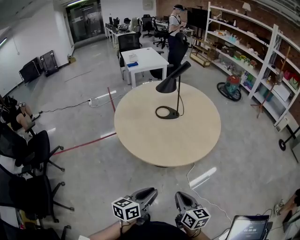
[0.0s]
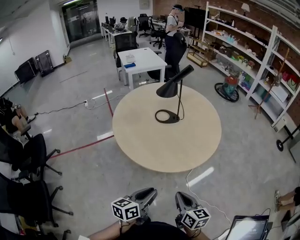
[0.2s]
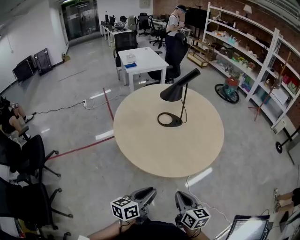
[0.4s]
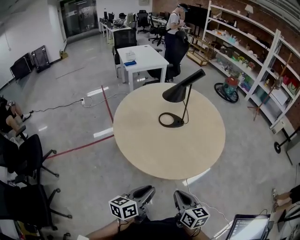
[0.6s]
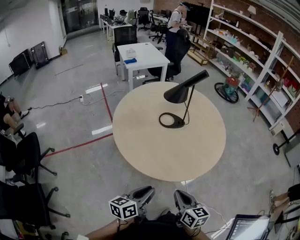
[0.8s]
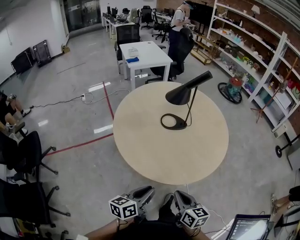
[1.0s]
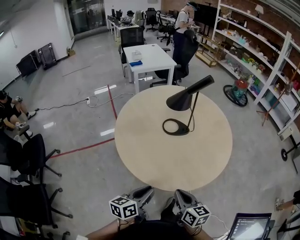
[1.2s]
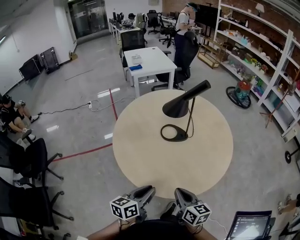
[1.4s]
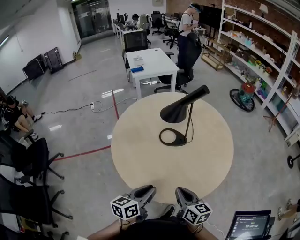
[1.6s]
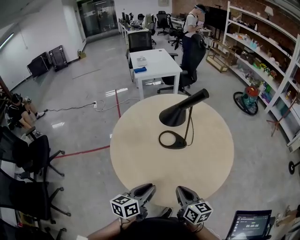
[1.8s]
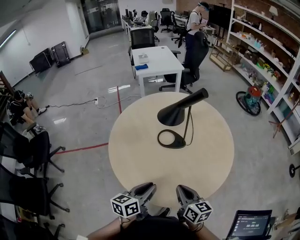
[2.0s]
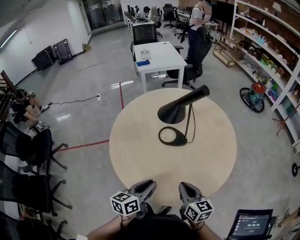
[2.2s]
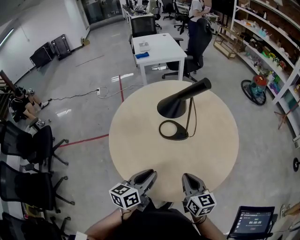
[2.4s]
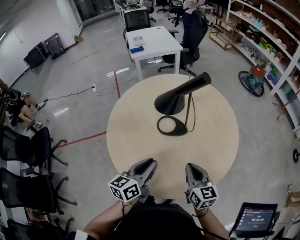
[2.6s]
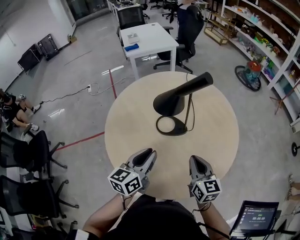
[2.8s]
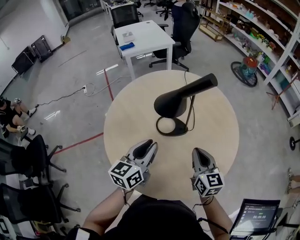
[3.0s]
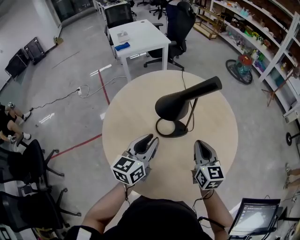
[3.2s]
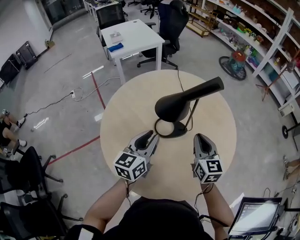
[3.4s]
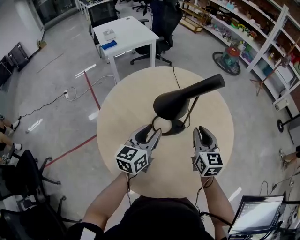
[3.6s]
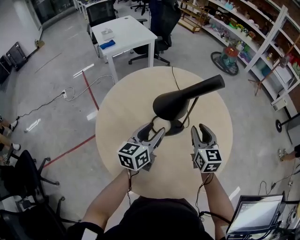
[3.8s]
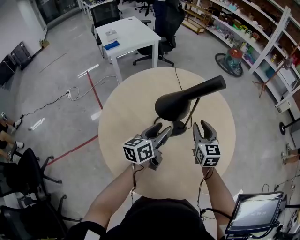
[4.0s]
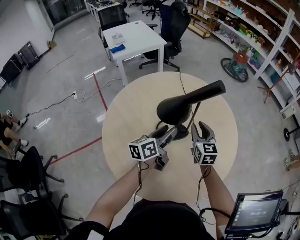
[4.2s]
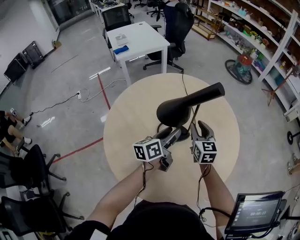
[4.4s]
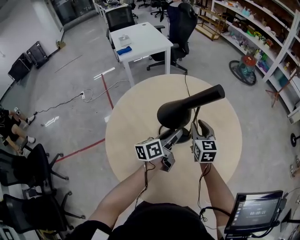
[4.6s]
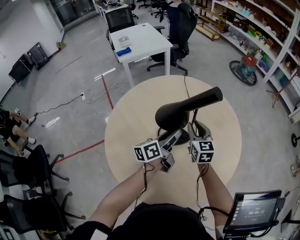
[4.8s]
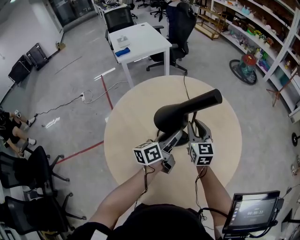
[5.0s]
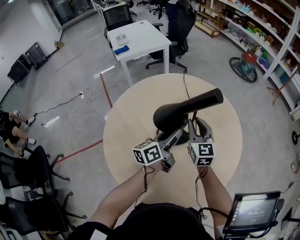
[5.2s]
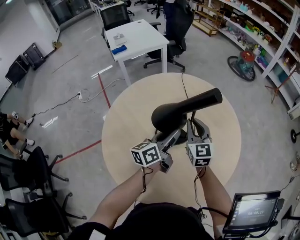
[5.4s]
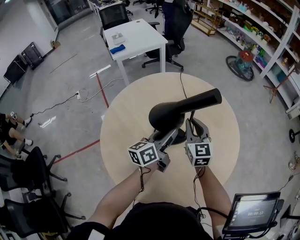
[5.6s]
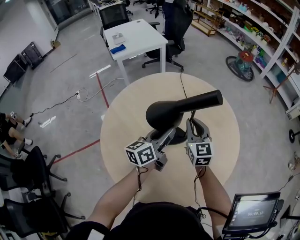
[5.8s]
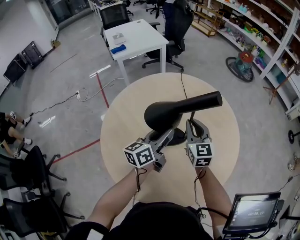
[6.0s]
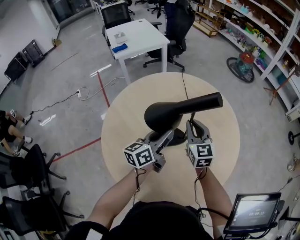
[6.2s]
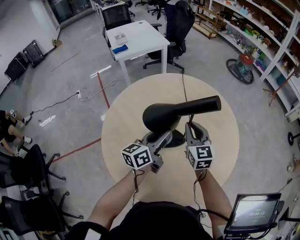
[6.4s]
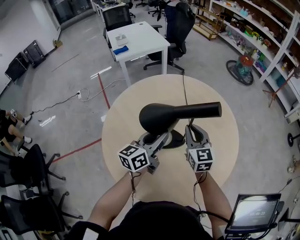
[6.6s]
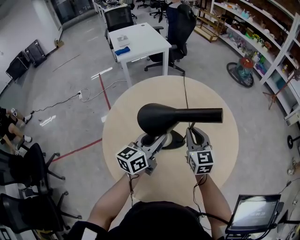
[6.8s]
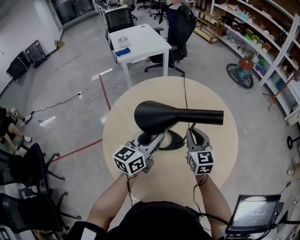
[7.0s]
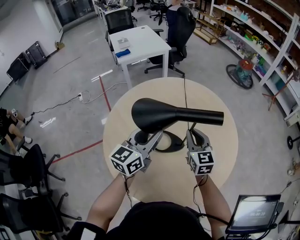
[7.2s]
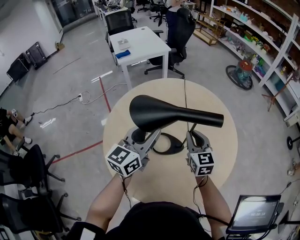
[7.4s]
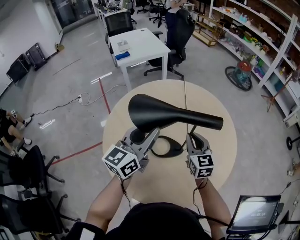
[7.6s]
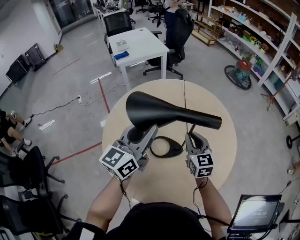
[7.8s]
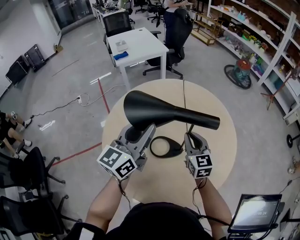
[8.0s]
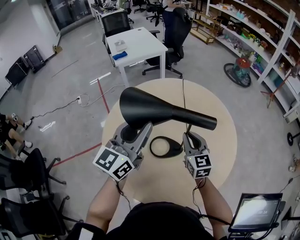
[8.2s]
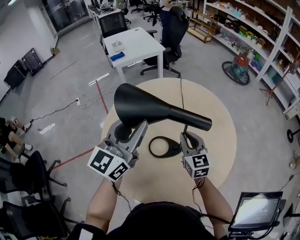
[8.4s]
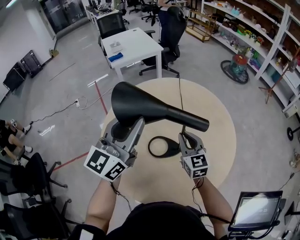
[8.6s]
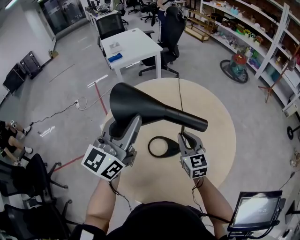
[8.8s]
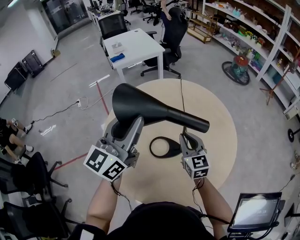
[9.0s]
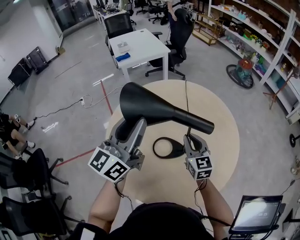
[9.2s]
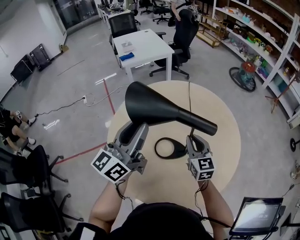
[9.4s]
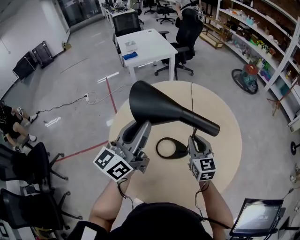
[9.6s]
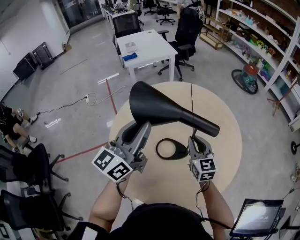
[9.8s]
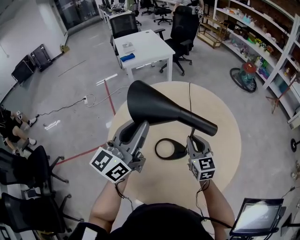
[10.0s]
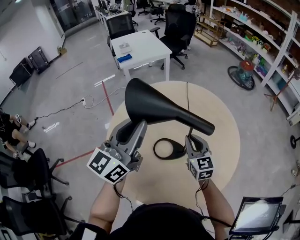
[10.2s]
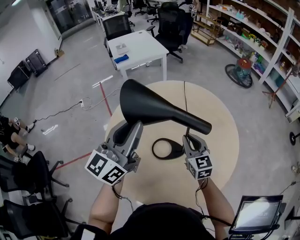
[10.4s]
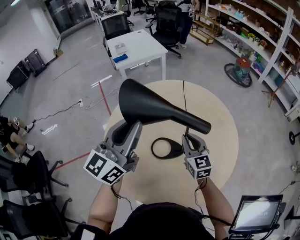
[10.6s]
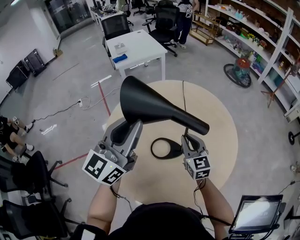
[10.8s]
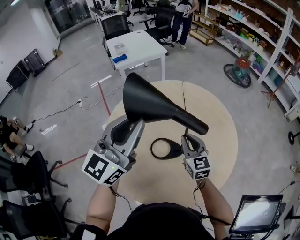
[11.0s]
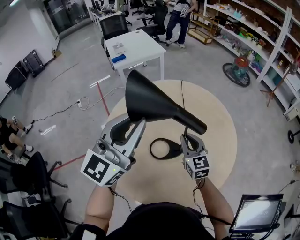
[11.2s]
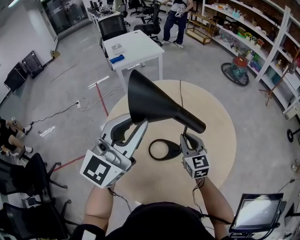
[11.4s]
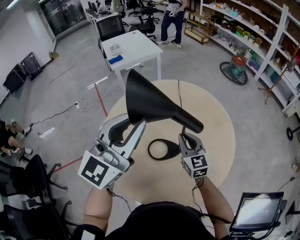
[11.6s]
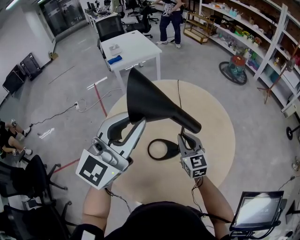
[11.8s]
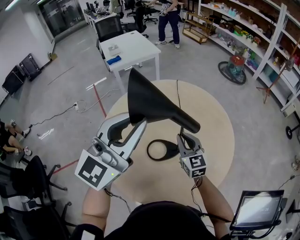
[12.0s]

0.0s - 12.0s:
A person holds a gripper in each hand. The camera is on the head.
0.0s - 1.6s: Both grippers move forward, about 25 cm.
1.6s - 3.0s: The grippers both shift forward by about 20 cm. The right gripper rotates roughly 20 degrees.
3.0s - 4.4s: The left gripper heads forward and downward, covering approximately 15 cm, turns by roughly 30 degrees, and opens its fingers; the right gripper travels forward by about 15 cm, and opens its fingers.
4.4s - 6.0s: The grippers make only small movements.
6.0s - 7.6s: The right gripper shifts about 5 cm backward. The left gripper heads upward, backward and to the left, covering about 15 cm, and swivels roughly 30 degrees.
7.6s - 9.0s: The left gripper heads upward, covering approximately 10 cm.
9.0s - 10.4s: There are only small adjustments of the grippers.
10.4s - 12.0s: The left gripper ends up approximately 5 cm from where it was, and swivels roughly 30 degrees.

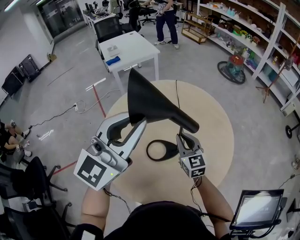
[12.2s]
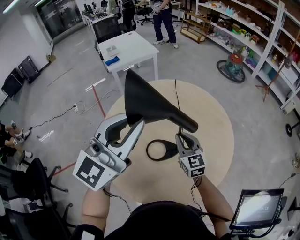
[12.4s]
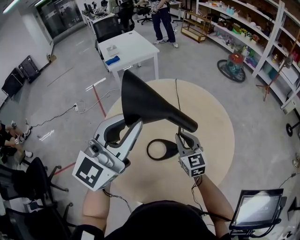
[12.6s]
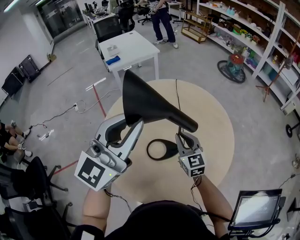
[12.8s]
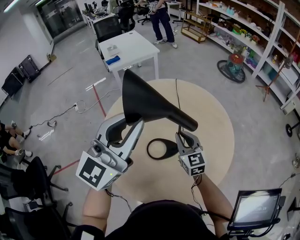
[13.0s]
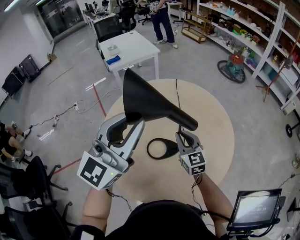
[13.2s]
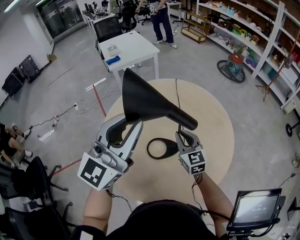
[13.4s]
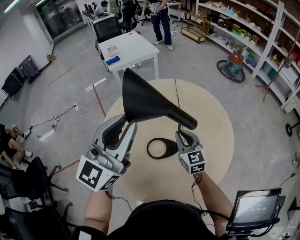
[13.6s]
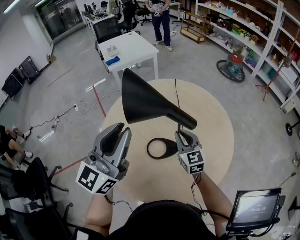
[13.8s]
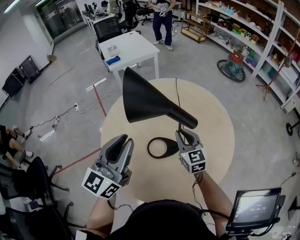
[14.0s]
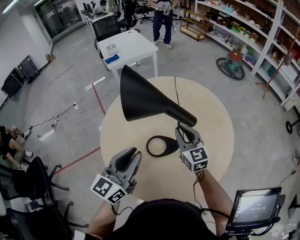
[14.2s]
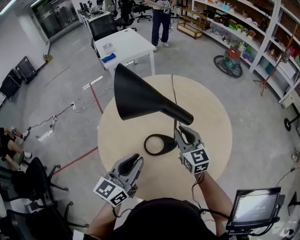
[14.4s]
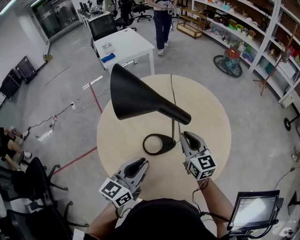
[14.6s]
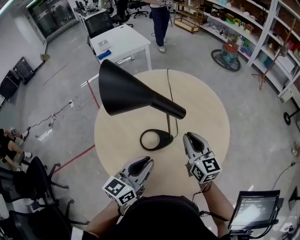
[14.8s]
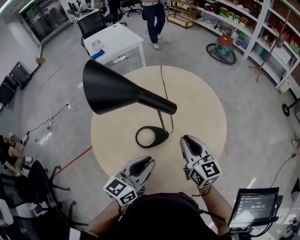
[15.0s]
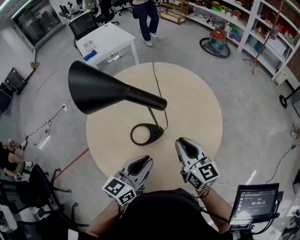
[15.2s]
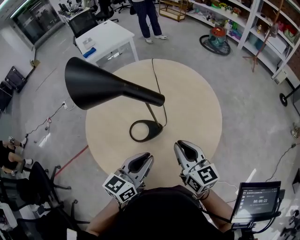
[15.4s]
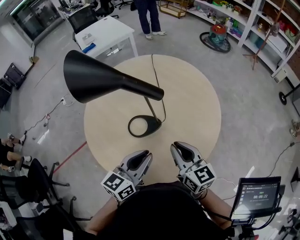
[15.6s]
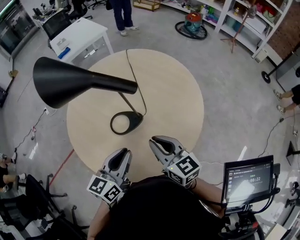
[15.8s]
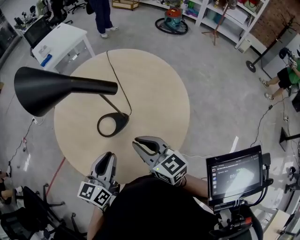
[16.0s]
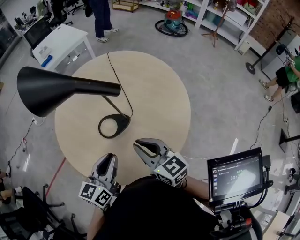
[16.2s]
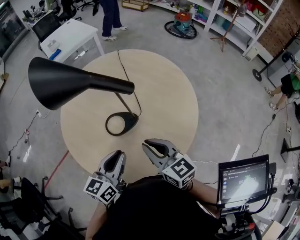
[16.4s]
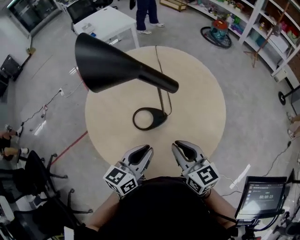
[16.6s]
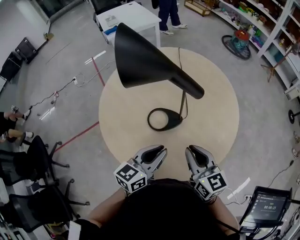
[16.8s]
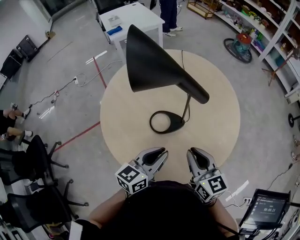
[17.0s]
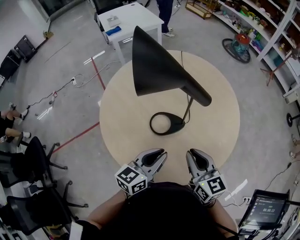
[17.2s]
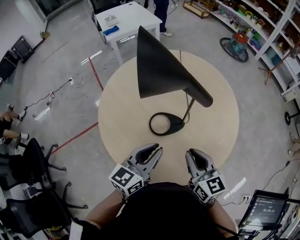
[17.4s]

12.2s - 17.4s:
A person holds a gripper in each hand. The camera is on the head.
12.2s - 14.0s: The left gripper moves downward, about 10 cm, and swivels approximately 20 degrees.
14.0s - 15.6s: The left gripper is displaced downward, to the right and backward by roughly 20 cm, and rotates about 30 degrees. The right gripper is displaced backward and to the right by some 20 cm.
15.6s - 17.4s: The left gripper is displaced to the left by roughly 5 cm.

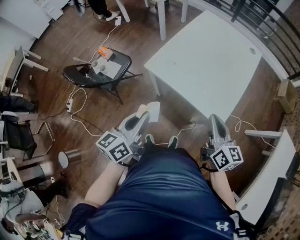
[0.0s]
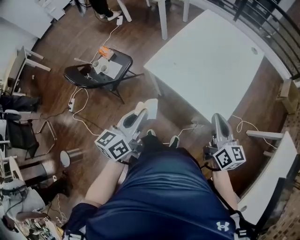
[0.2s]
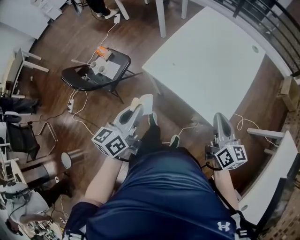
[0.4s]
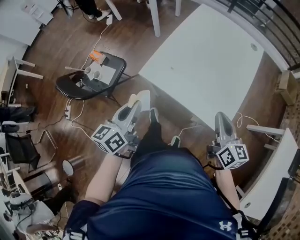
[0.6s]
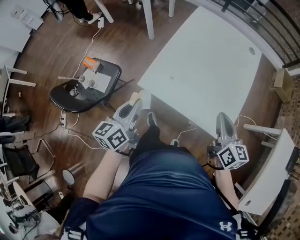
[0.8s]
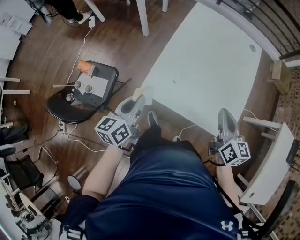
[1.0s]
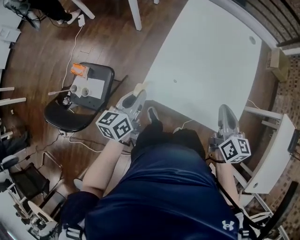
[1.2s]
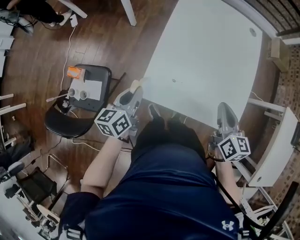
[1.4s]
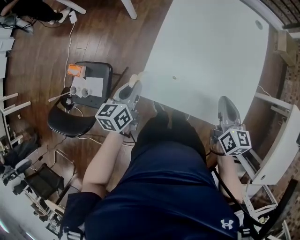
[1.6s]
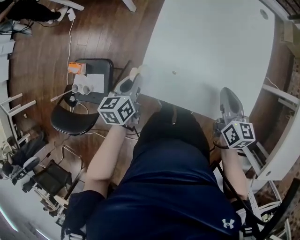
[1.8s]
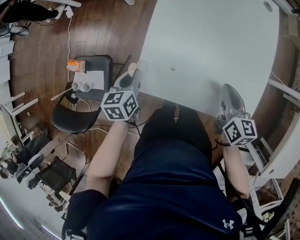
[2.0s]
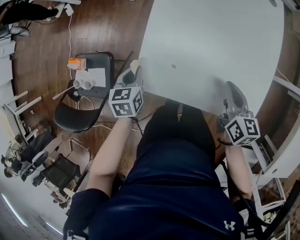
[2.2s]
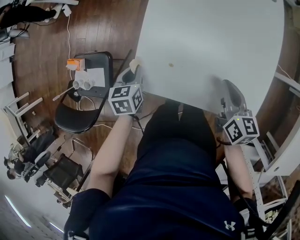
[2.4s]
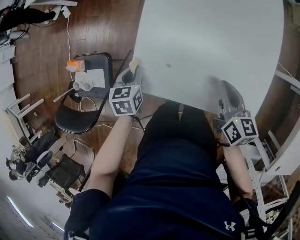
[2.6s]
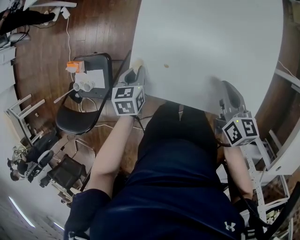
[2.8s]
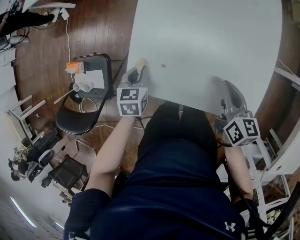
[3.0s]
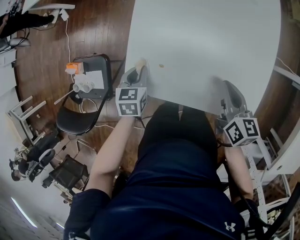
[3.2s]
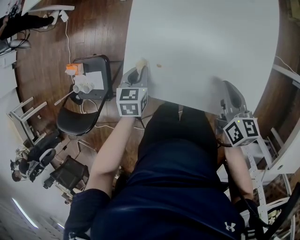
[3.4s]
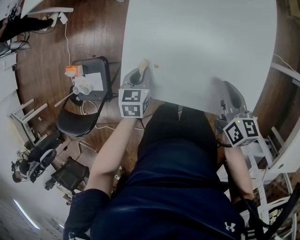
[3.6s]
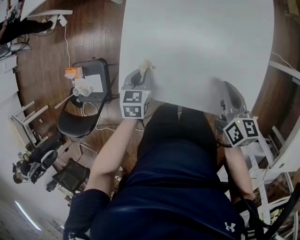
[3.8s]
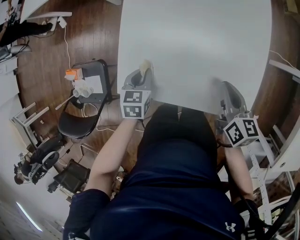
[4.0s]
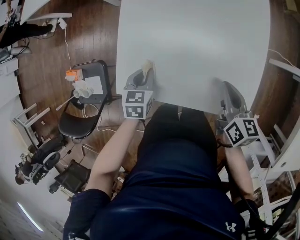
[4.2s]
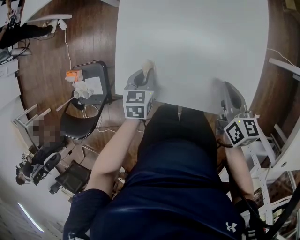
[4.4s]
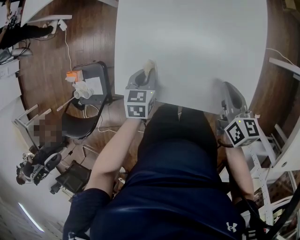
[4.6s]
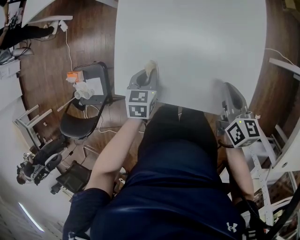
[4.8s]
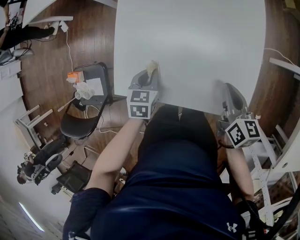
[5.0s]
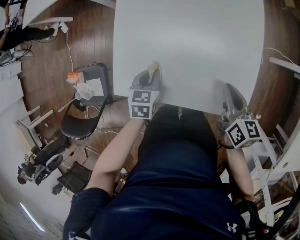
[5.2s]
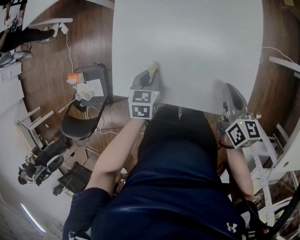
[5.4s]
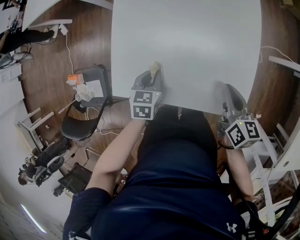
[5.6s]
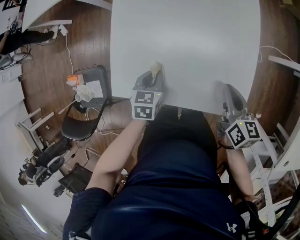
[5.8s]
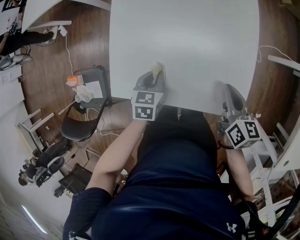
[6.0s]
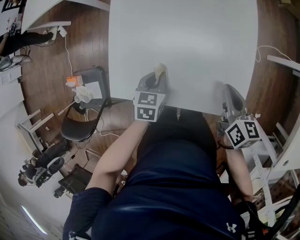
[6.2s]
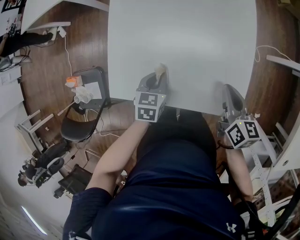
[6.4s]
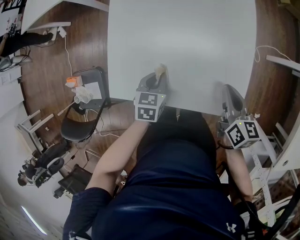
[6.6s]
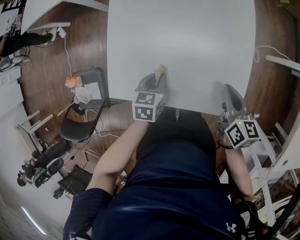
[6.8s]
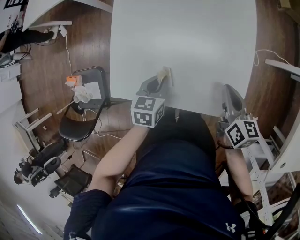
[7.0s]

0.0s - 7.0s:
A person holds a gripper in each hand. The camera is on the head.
0.0s - 1.4s: The left gripper is displaced forward and downward by roughly 30 cm, and swivels roughly 20 degrees. Meanwhile the right gripper shifts approximately 15 cm forward, and changes its angle by roughly 30 degrees.
1.4s - 2.8s: Both grippers move downward, approximately 15 cm. The left gripper tilts its fingers about 30 degrees downward.
2.8s - 4.2s: Both grippers move to the right, approximately 10 cm.
4.2s - 5.6s: The left gripper shifts about 5 cm to the right.
5.6s - 7.0s: The left gripper moves to the right, some 5 cm.
